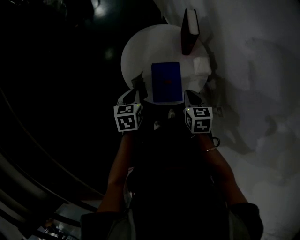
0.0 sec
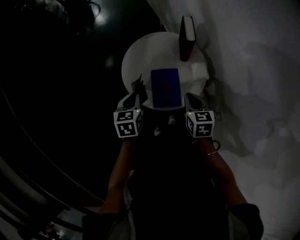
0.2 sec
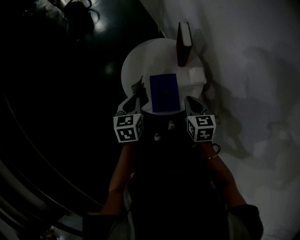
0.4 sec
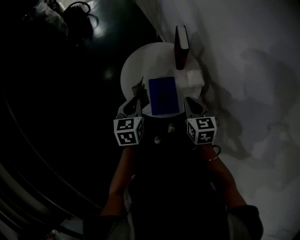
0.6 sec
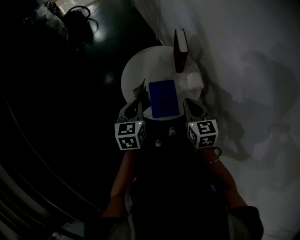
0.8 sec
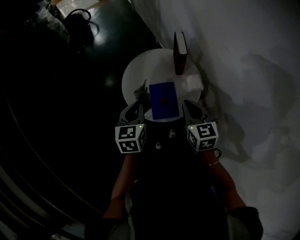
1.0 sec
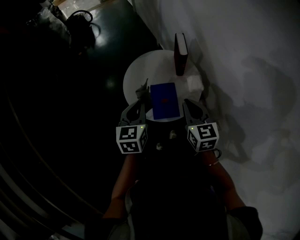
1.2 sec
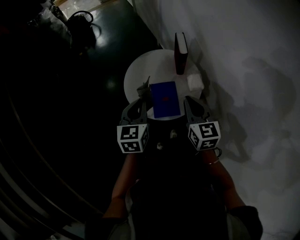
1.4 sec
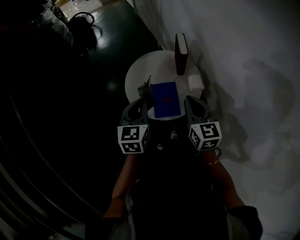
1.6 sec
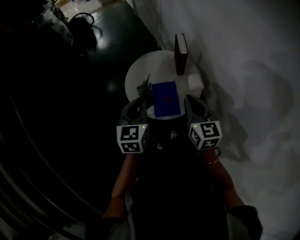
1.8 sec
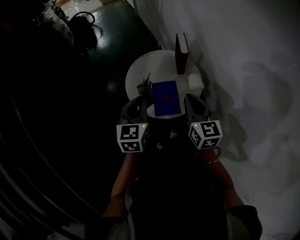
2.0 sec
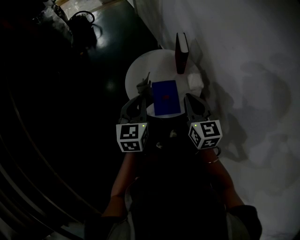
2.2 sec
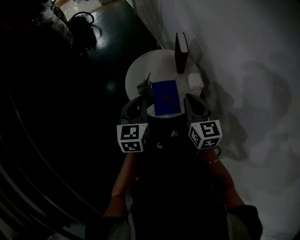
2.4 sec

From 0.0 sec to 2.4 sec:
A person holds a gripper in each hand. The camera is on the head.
From 0.0 sec to 1.2 sec: Both grippers travel together upward, approximately 15 cm. The left gripper changes its angle by approximately 20 degrees, while the right gripper changes its angle by some 20 degrees.
From 1.2 sec to 2.4 sec: The grippers stay close to where they were, moving slightly.

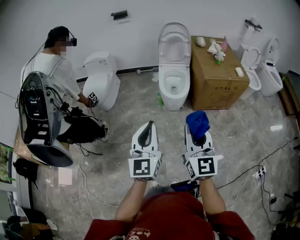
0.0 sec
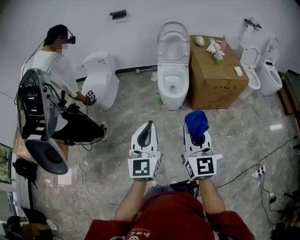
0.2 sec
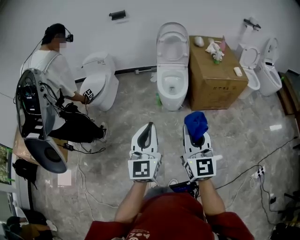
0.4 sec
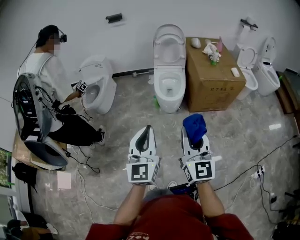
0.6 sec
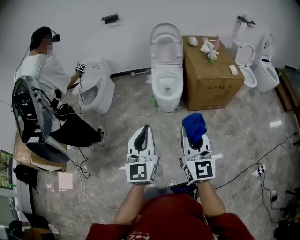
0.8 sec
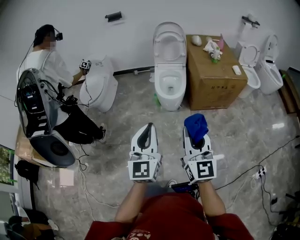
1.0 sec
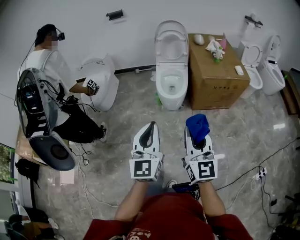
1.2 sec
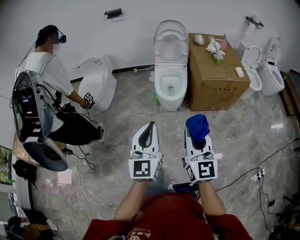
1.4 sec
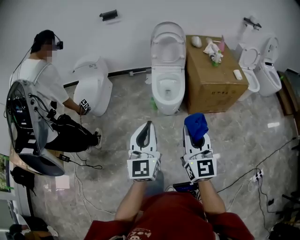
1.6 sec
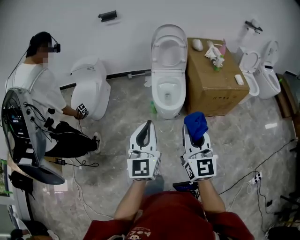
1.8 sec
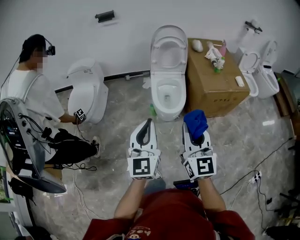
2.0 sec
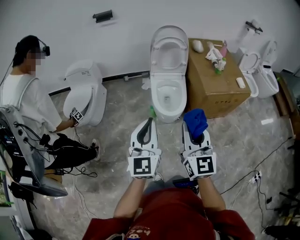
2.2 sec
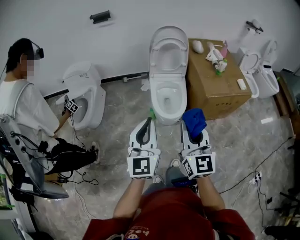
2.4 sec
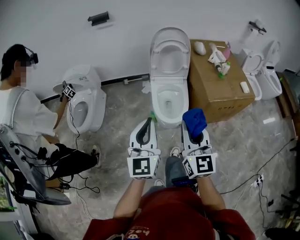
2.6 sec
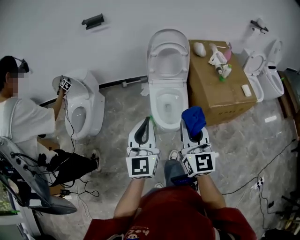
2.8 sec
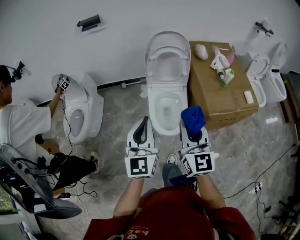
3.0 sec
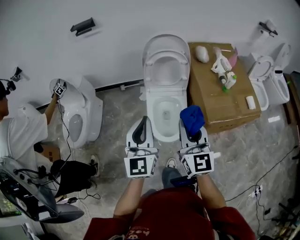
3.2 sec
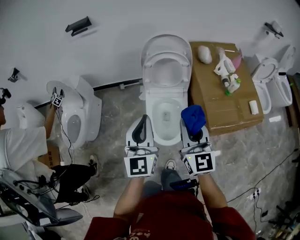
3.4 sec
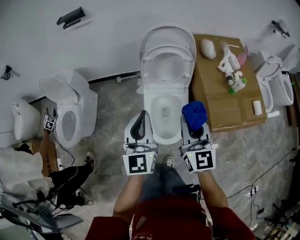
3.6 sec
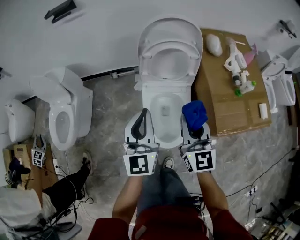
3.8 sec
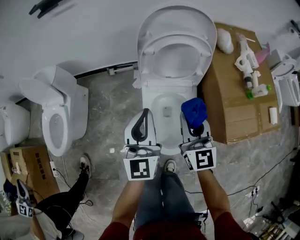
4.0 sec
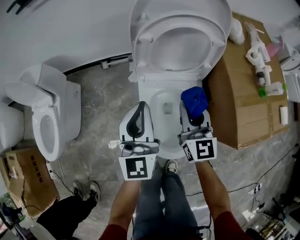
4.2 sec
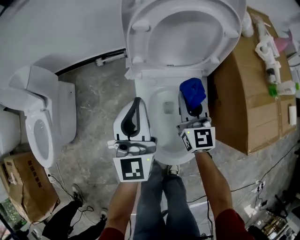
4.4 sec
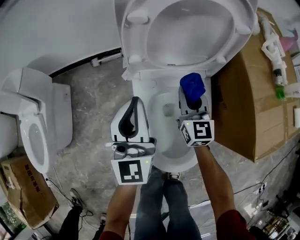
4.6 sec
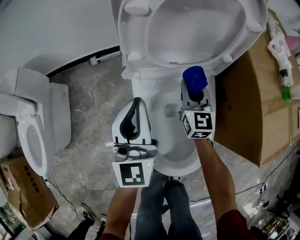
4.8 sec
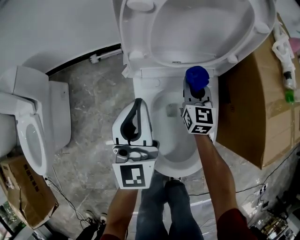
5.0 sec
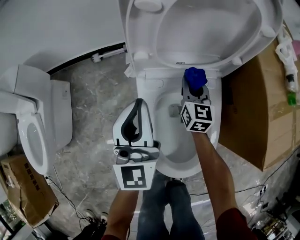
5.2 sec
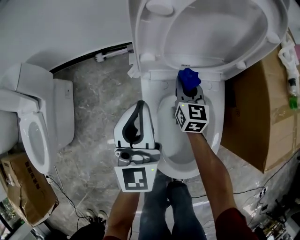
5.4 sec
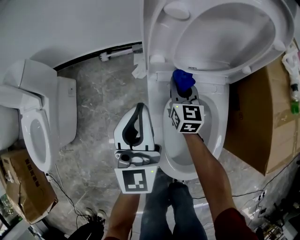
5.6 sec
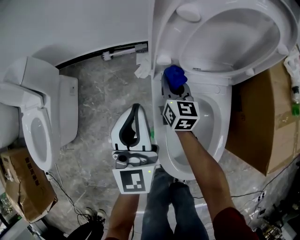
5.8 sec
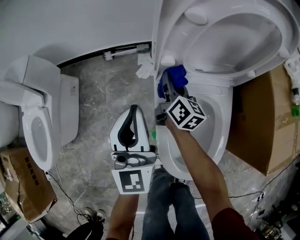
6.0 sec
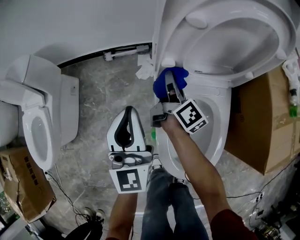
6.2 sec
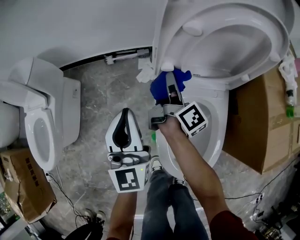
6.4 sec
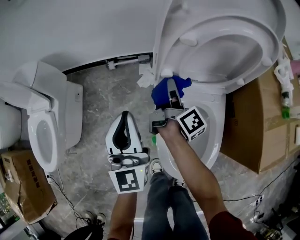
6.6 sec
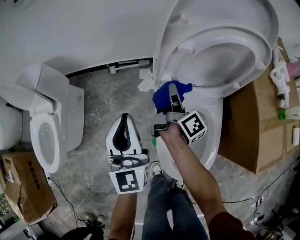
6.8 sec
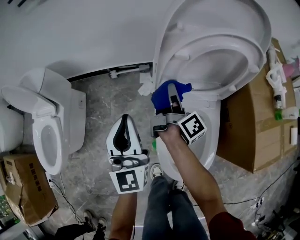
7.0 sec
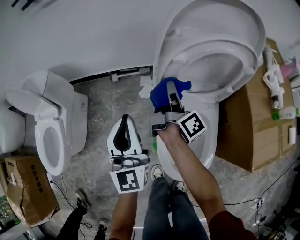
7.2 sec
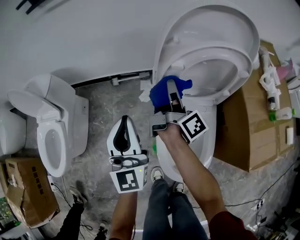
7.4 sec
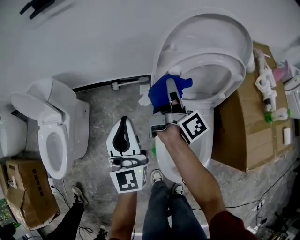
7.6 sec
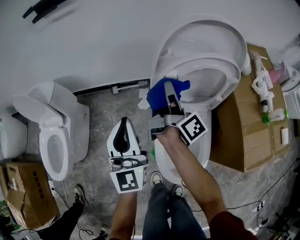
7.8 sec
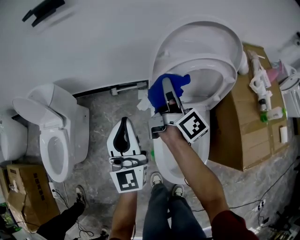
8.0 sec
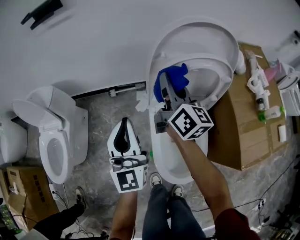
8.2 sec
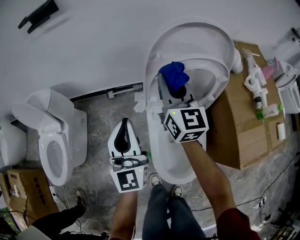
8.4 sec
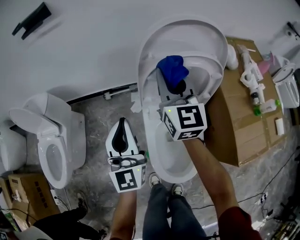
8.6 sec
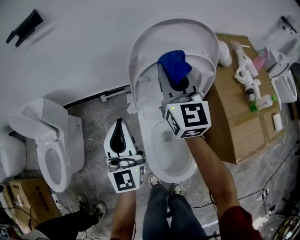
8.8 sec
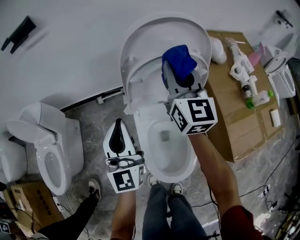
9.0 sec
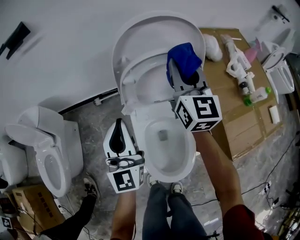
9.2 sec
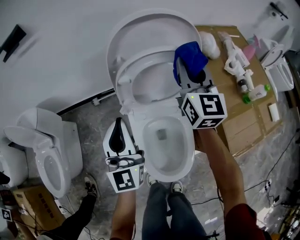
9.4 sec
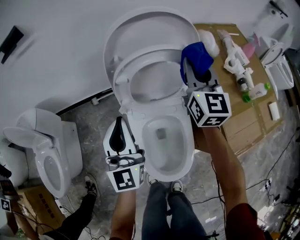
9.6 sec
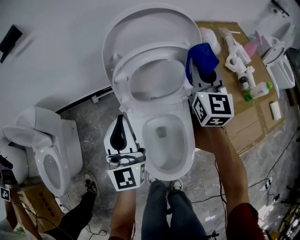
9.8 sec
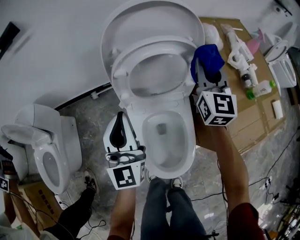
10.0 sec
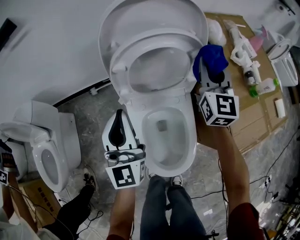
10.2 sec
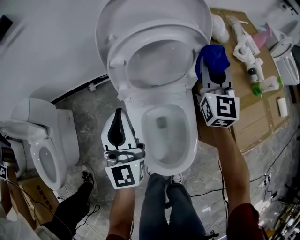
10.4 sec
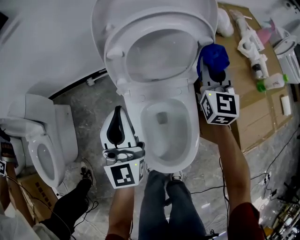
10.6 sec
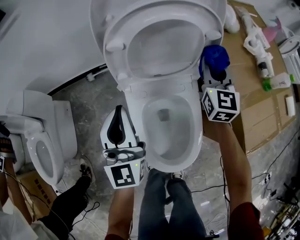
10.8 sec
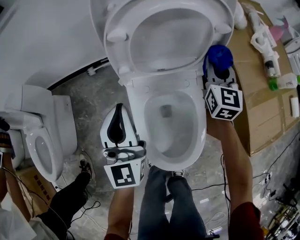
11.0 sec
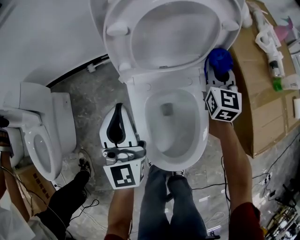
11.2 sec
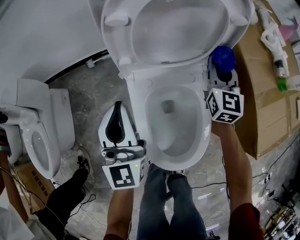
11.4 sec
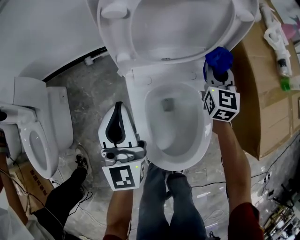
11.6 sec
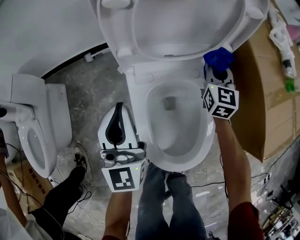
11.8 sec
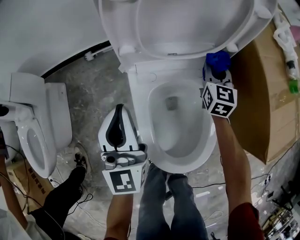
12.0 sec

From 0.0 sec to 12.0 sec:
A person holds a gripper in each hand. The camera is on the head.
From 0.0 sec to 1.6 sec: The two grippers go some 10 cm forward.
From 1.6 sec to 3.0 sec: The two grippers travel together, forward, some 40 cm.
From 3.0 sec to 4.4 sec: Both grippers are carried forward, roughly 40 cm. Both grippers move downward, about 40 cm.
From 4.4 sec to 6.0 sec: The right gripper travels downward, to the left and forward by approximately 25 cm, and rolls clockwise, seen from behind, by approximately 40 degrees. The left gripper is displaced to the left and downward by some 15 cm.
From 6.0 sec to 7.6 sec: The left gripper shifts roughly 20 cm upward. Meanwhile the right gripper travels upward by about 30 cm, and turns by some 40 degrees.
From 7.6 sec to 9.0 sec: The right gripper heads upward and to the right, covering roughly 15 cm, and rolls counterclockwise, seen from behind, by some 80 degrees; the left gripper shifts some 10 cm to the right.
From 9.0 sec to 10.4 sec: The right gripper is displaced to the right and downward by about 20 cm; the left gripper goes about 5 cm downward.
From 10.4 sec to 12.0 sec: The right gripper moves downward, approximately 30 cm, and turns by roughly 20 degrees. The left gripper heads downward, covering some 15 cm.

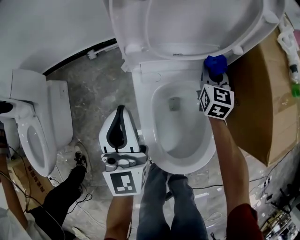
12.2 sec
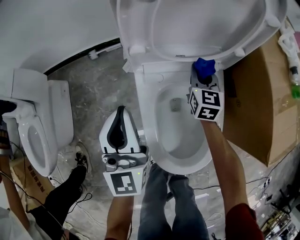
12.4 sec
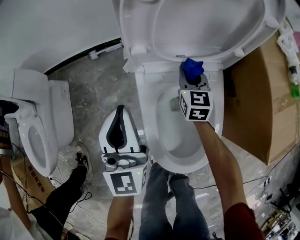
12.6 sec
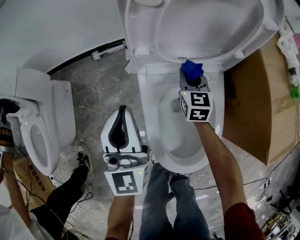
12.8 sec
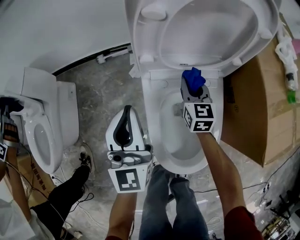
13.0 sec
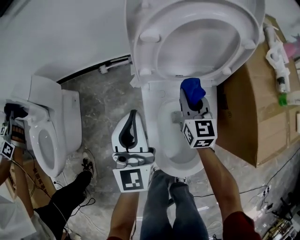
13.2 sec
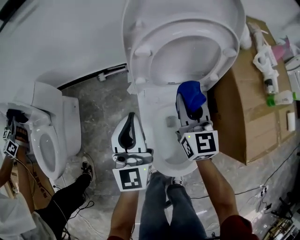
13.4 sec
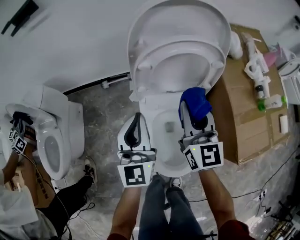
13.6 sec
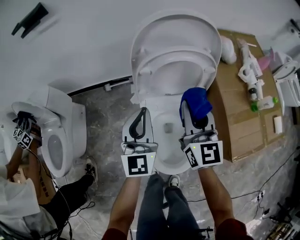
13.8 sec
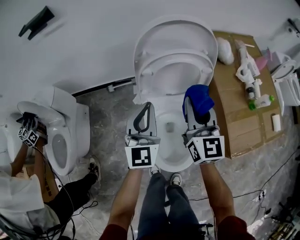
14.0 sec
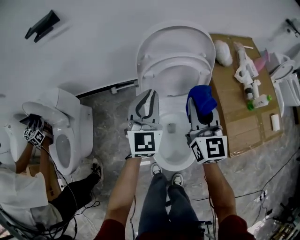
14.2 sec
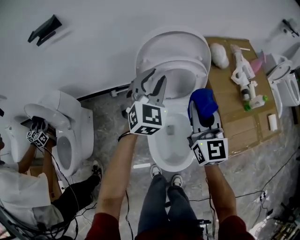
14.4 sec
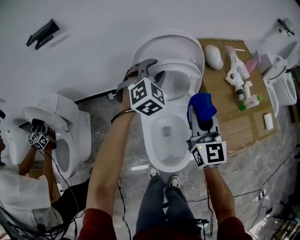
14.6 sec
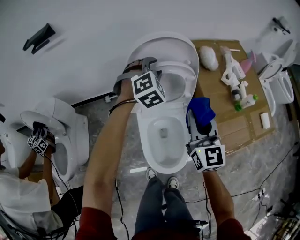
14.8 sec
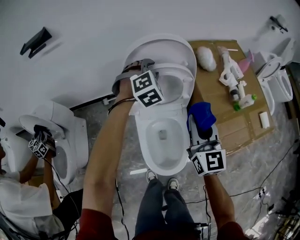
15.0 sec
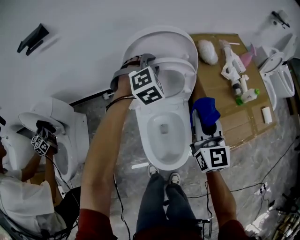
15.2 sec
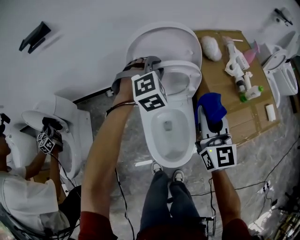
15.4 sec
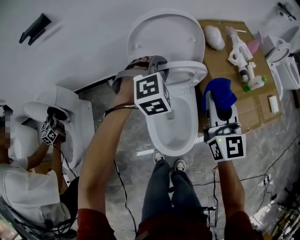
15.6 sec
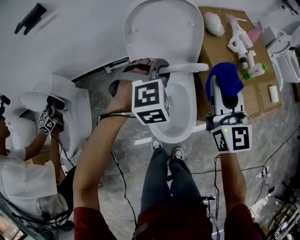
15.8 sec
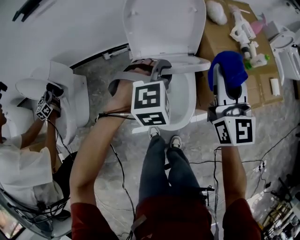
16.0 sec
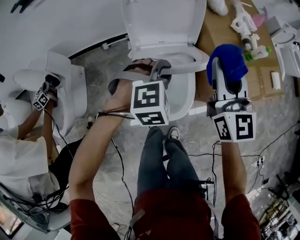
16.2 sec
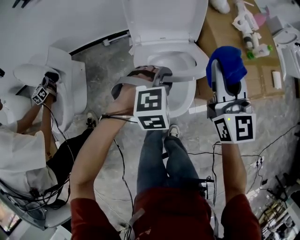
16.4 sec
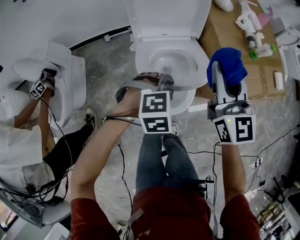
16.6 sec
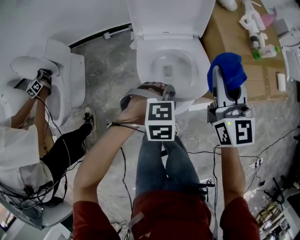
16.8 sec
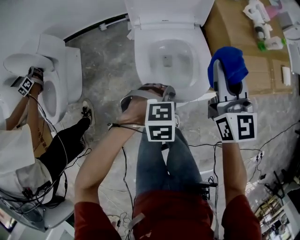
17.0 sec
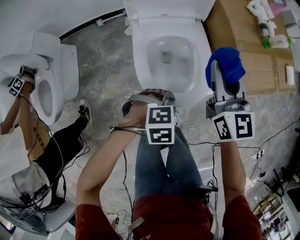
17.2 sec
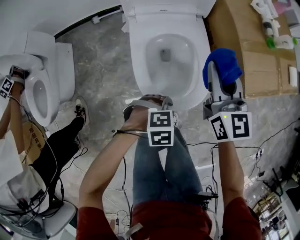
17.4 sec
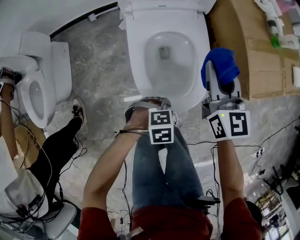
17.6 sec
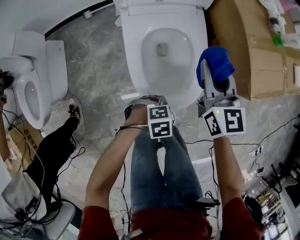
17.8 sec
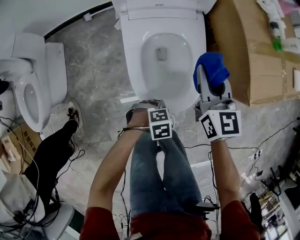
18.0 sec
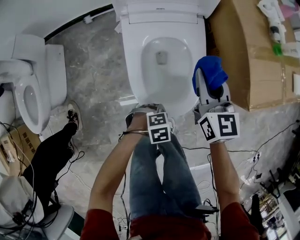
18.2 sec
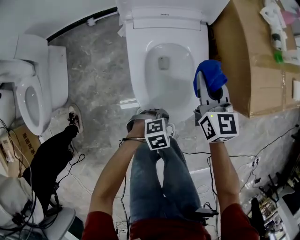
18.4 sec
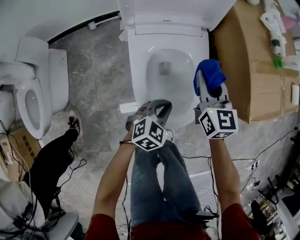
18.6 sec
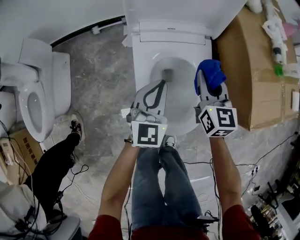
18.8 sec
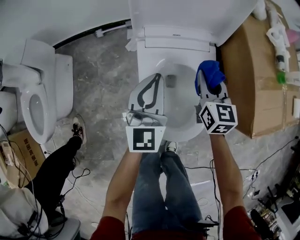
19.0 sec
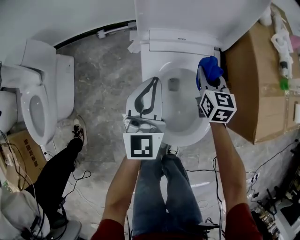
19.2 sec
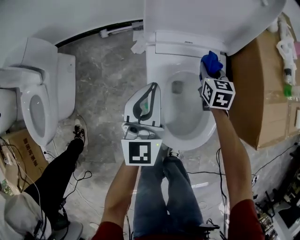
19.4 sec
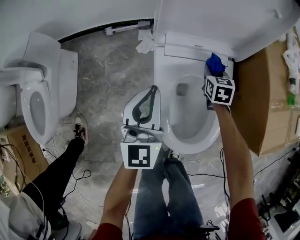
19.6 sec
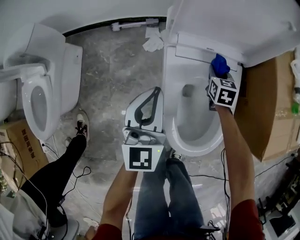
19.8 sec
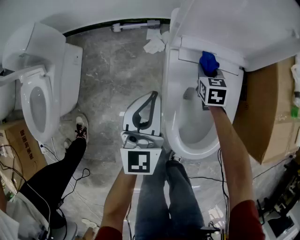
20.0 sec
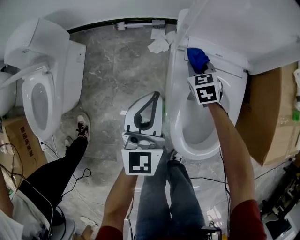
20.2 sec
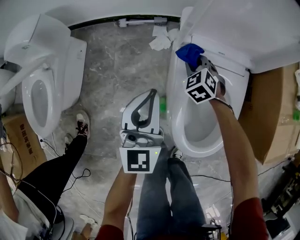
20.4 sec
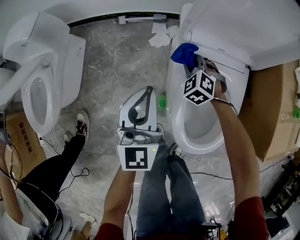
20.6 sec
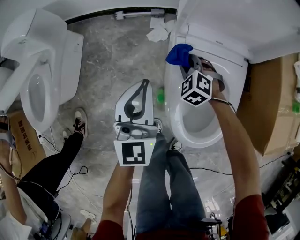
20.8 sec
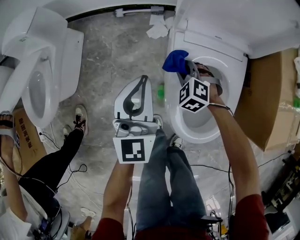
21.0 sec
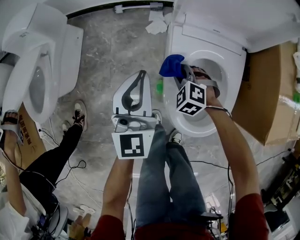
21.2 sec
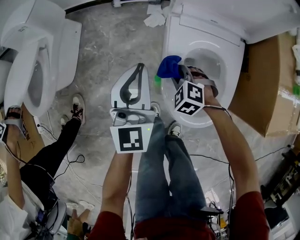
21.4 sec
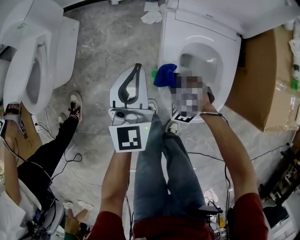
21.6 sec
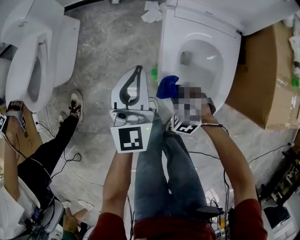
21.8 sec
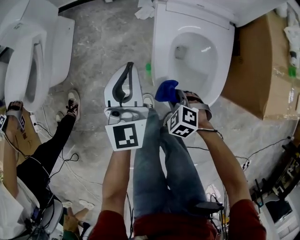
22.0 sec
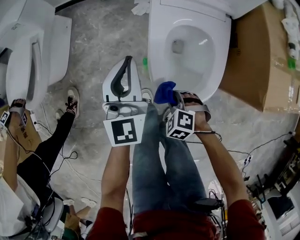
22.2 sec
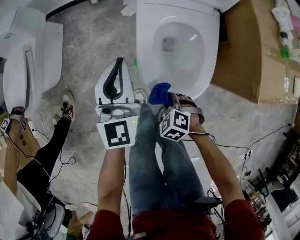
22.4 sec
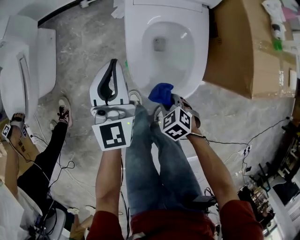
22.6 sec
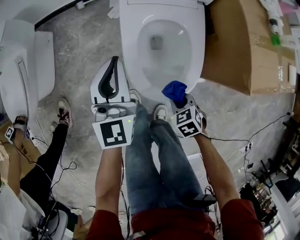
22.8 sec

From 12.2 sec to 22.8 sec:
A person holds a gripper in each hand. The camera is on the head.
From 12.2 sec to 13.8 sec: The left gripper goes roughly 20 cm upward; the right gripper heads upward, covering some 40 cm, and swivels some 30 degrees.
From 13.8 sec to 15.2 sec: The right gripper is displaced to the right, upward and backward by roughly 15 cm; the left gripper shifts approximately 20 cm forward and to the right, angles its fingers downward, by approximately 40 degrees, and opens.
From 15.2 sec to 16.8 sec: The left gripper moves backward and downward, about 40 cm, and changes its angle by some 40 degrees; the right gripper travels backward by roughly 10 cm.
From 16.8 sec to 18.2 sec: The two grippers go some 30 cm downward. The left gripper changes its angle by approximately 20 degrees.
From 18.2 sec to 19.8 sec: The right gripper ends up roughly 30 cm from where it was, and rotates approximately 30 degrees, while the left gripper ends up about 40 cm from where it was, and tilts its fingers some 60 degrees upward.
From 19.8 sec to 21.2 sec: The left gripper heads to the left, covering approximately 5 cm. The right gripper heads to the left and backward, covering approximately 25 cm, and rolls counterclockwise, seen from behind, by roughly 60 degrees.
From 21.2 sec to 22.8 sec: The right gripper heads backward, covering some 30 cm, and rotates around the line of its fingers by some 50 degrees, clockwise from behind. Meanwhile the left gripper travels backward and to the right by some 15 cm.
